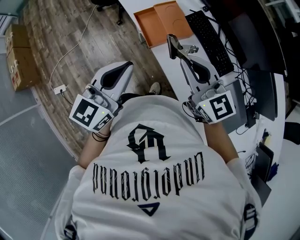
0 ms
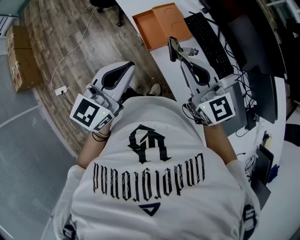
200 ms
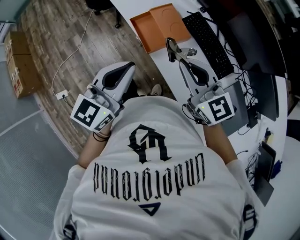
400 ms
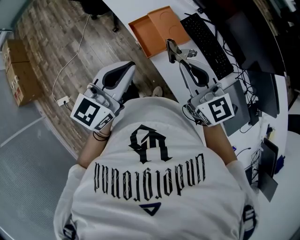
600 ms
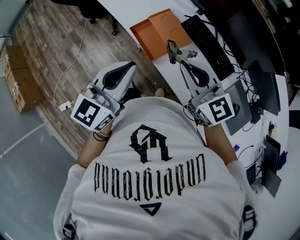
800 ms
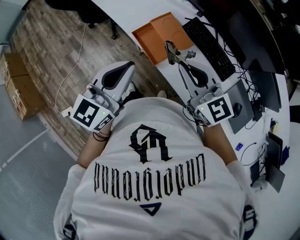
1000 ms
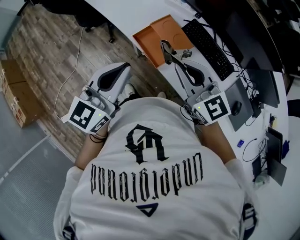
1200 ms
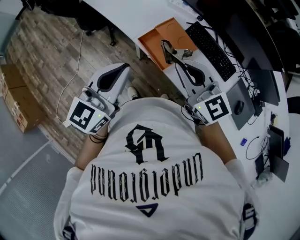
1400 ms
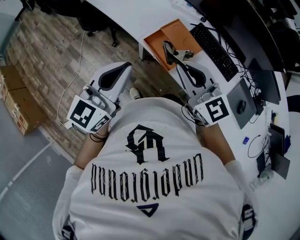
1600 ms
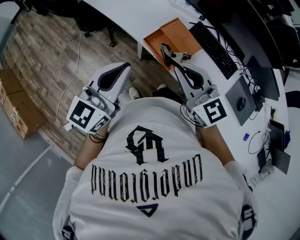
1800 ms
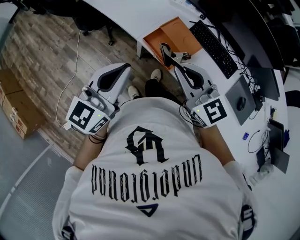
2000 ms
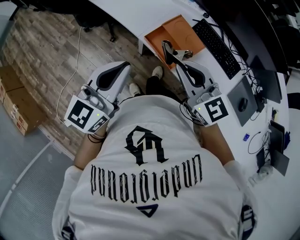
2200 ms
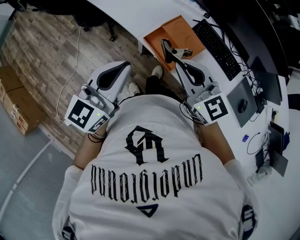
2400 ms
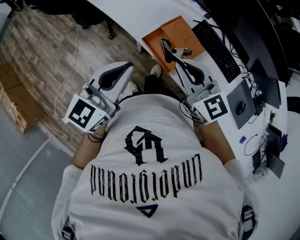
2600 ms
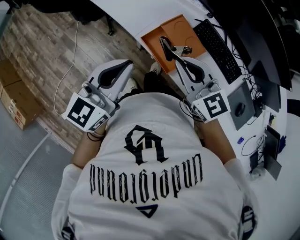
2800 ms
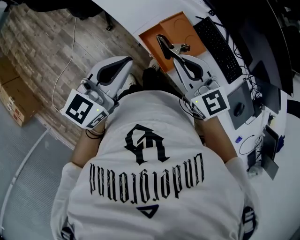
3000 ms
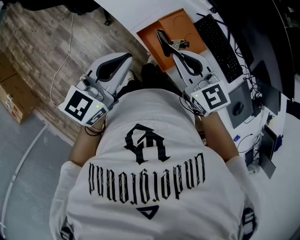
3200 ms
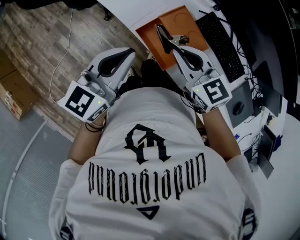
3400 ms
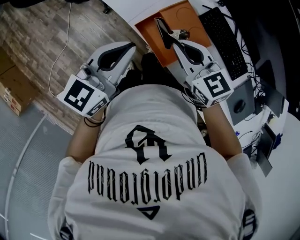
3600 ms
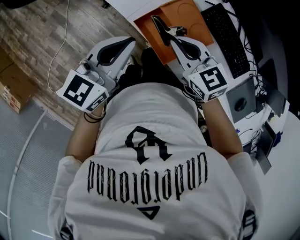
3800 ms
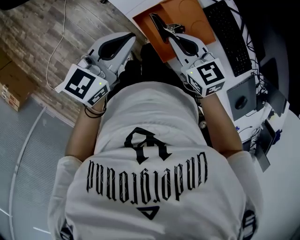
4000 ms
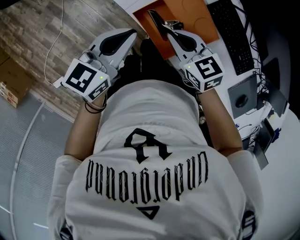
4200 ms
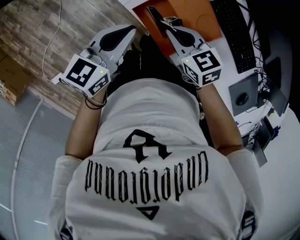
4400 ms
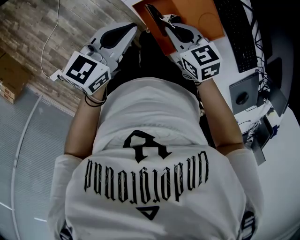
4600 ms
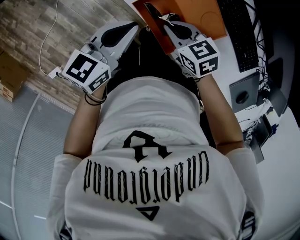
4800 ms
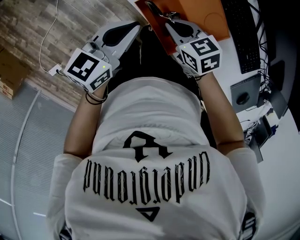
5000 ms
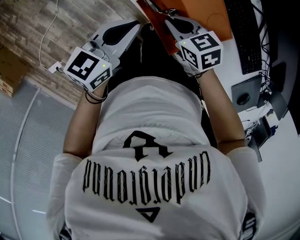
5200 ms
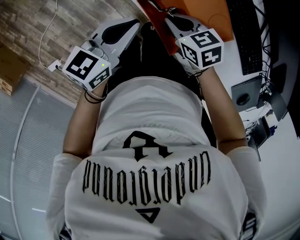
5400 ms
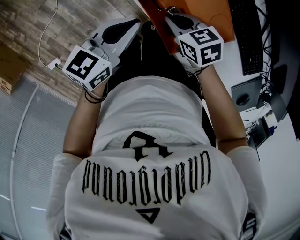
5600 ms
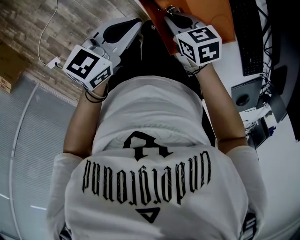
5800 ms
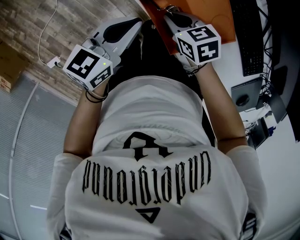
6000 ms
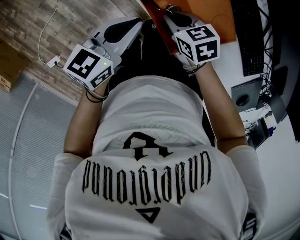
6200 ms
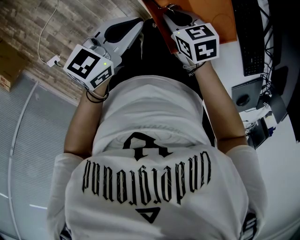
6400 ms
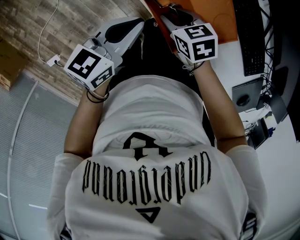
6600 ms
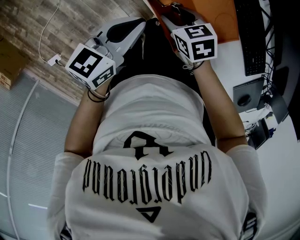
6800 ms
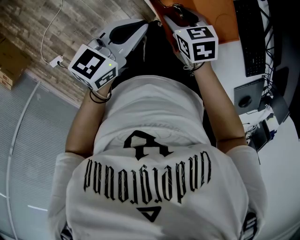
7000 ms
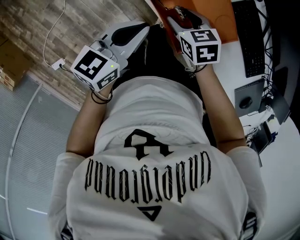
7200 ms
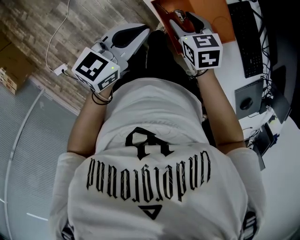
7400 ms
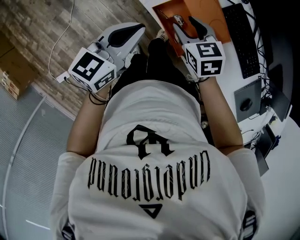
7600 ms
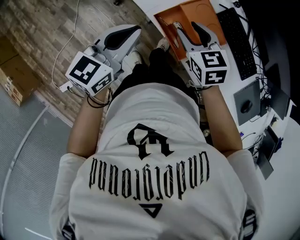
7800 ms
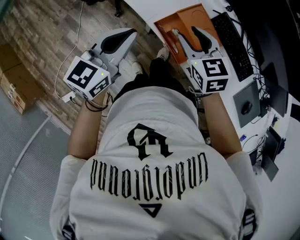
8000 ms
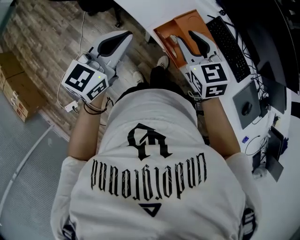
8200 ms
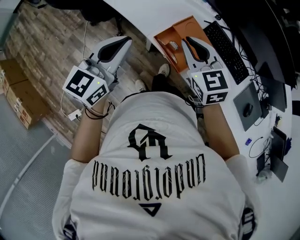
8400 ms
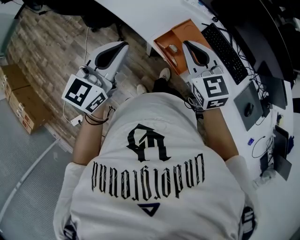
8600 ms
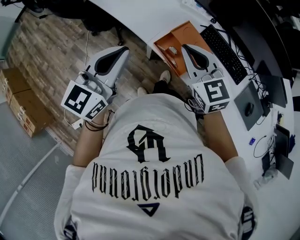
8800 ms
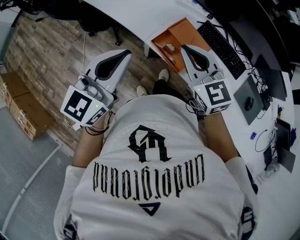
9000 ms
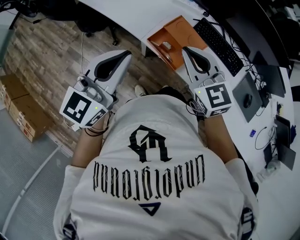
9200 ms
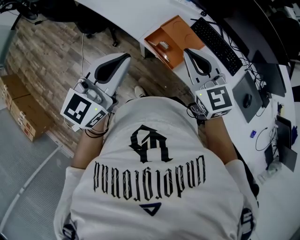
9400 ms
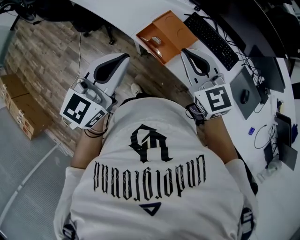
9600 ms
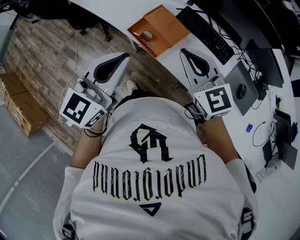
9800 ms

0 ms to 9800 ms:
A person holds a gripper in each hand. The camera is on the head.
0 ms to 1400 ms: Both grippers travel together to the left and forward, approximately 15 cm.
1400 ms to 2800 ms: The left gripper heads forward, covering roughly 5 cm; the right gripper moves forward and downward, some 10 cm.
2800 ms to 4200 ms: The right gripper goes about 20 cm downward, and changes its angle by approximately 30 degrees, while the left gripper is displaced downward and forward by roughly 20 cm.
4200 ms to 5600 ms: Both grippers travel together downward, about 10 cm.
5600 ms to 7000 ms: The right gripper opens.
7000 ms to 8400 ms: The left gripper travels upward and to the left by some 25 cm, and turns by approximately 30 degrees; the right gripper moves upward, approximately 30 cm, swivels roughly 40 degrees, and closes.
8400 ms to 9800 ms: Both grippers move to the right, backward and upward, approximately 20 cm.

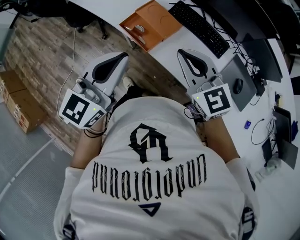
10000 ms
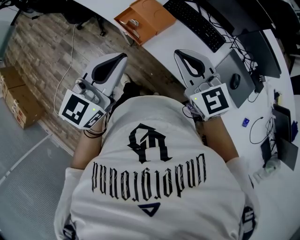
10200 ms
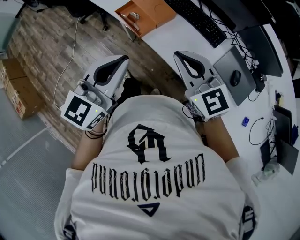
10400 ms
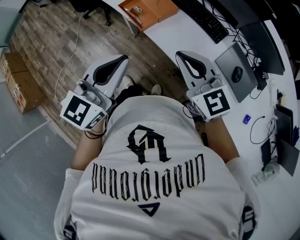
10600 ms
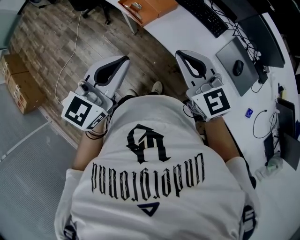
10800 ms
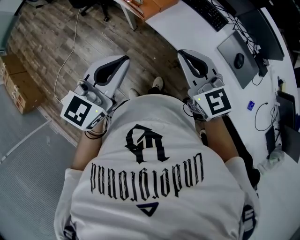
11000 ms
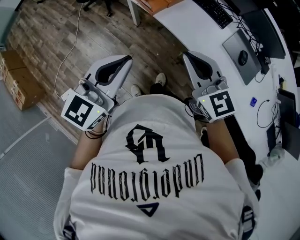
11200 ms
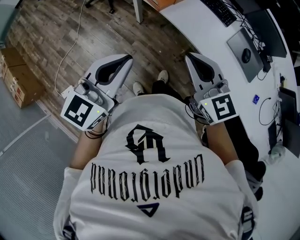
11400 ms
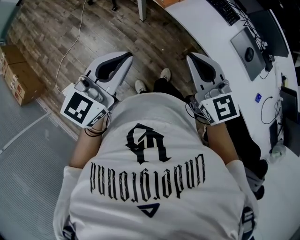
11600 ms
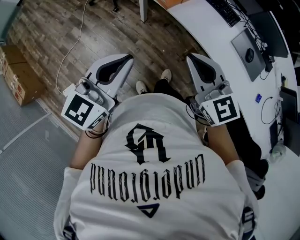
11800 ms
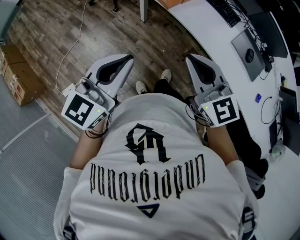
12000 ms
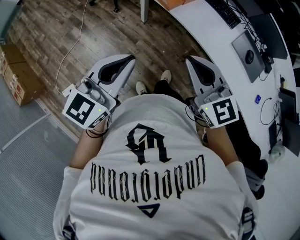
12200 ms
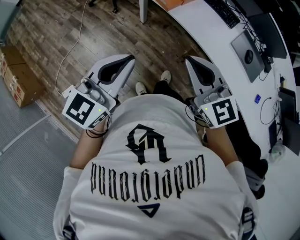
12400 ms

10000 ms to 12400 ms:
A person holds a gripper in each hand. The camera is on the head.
10000 ms to 11200 ms: Both grippers move backward, approximately 20 cm.
11200 ms to 12400 ms: Both grippers move to the left and backward, some 10 cm.

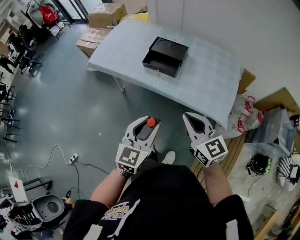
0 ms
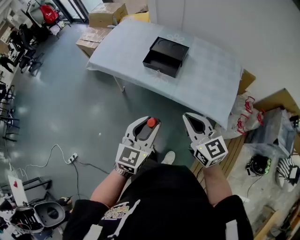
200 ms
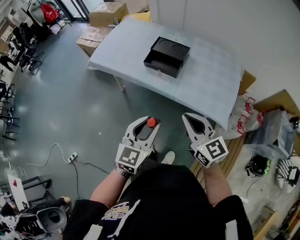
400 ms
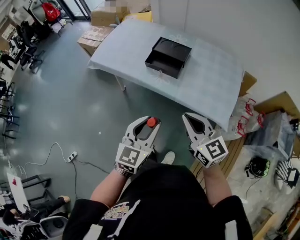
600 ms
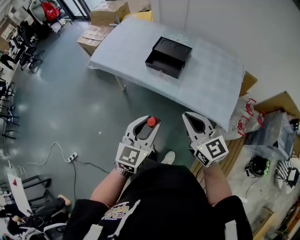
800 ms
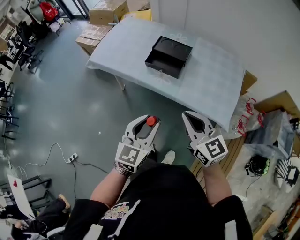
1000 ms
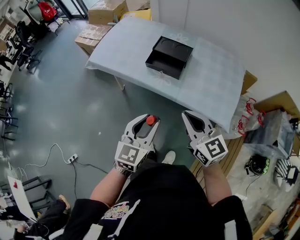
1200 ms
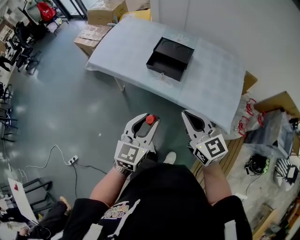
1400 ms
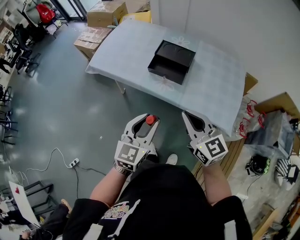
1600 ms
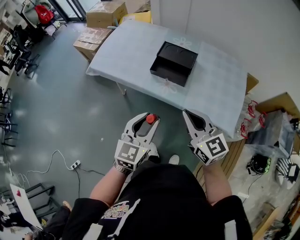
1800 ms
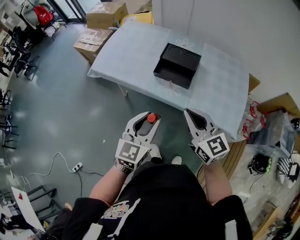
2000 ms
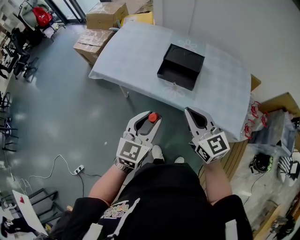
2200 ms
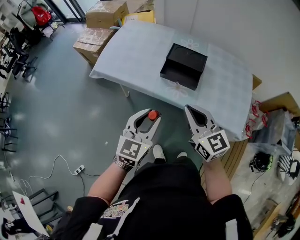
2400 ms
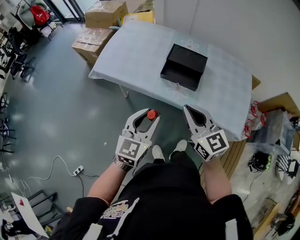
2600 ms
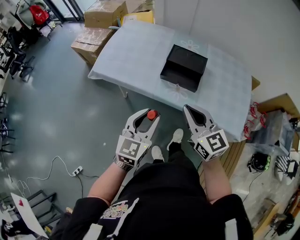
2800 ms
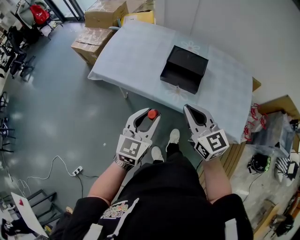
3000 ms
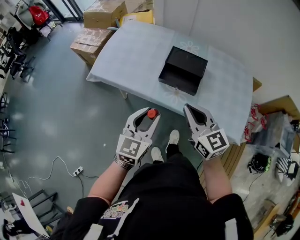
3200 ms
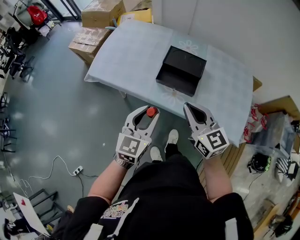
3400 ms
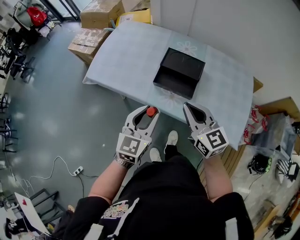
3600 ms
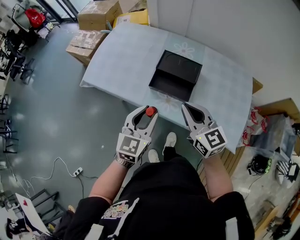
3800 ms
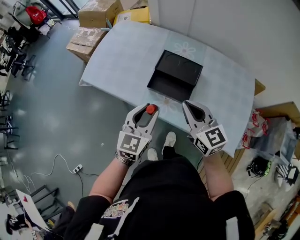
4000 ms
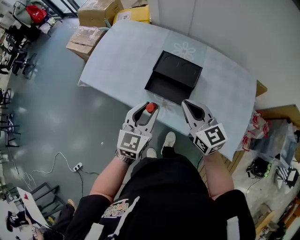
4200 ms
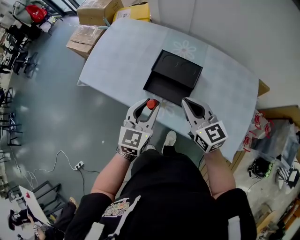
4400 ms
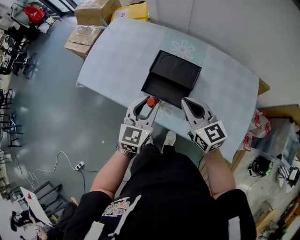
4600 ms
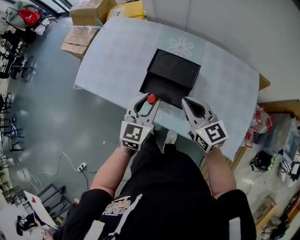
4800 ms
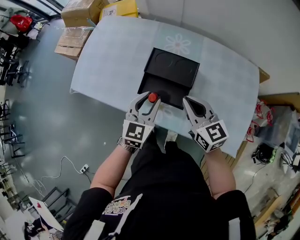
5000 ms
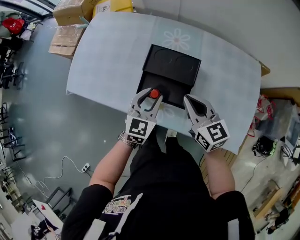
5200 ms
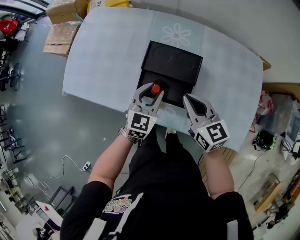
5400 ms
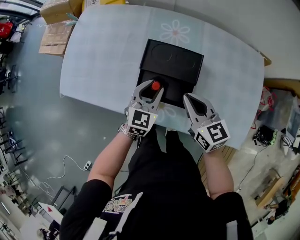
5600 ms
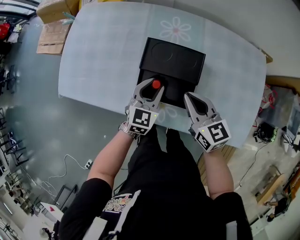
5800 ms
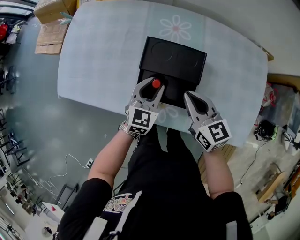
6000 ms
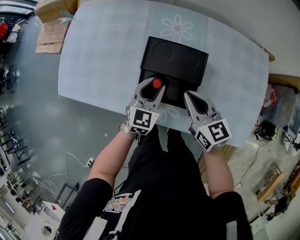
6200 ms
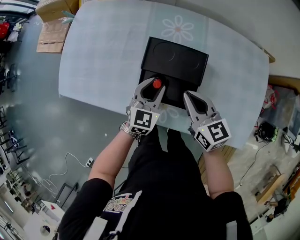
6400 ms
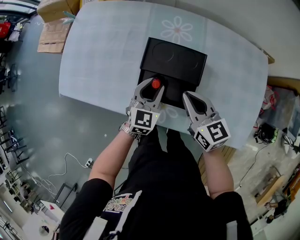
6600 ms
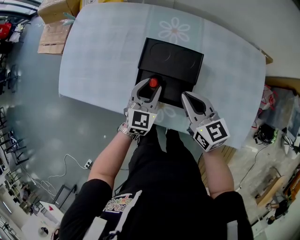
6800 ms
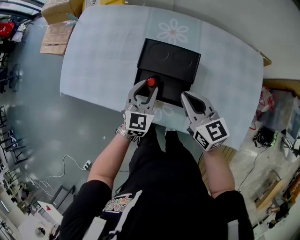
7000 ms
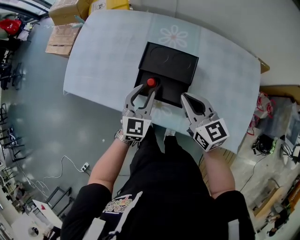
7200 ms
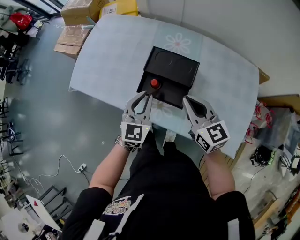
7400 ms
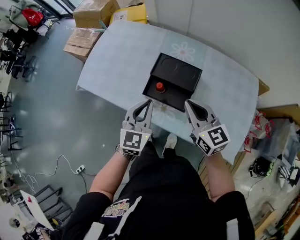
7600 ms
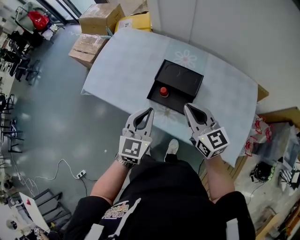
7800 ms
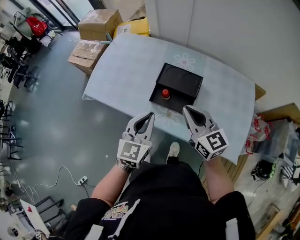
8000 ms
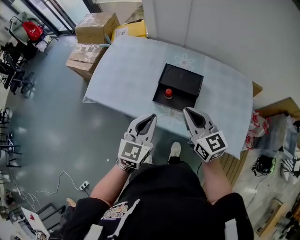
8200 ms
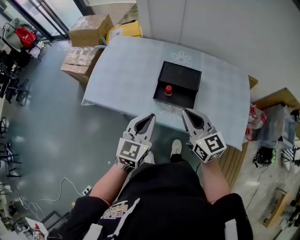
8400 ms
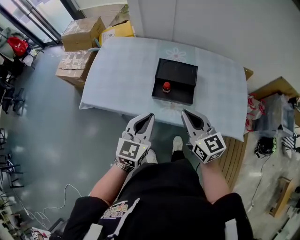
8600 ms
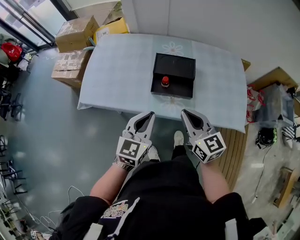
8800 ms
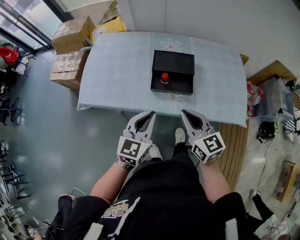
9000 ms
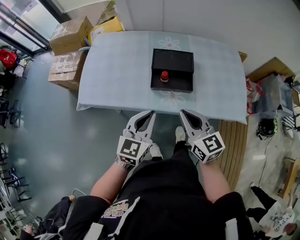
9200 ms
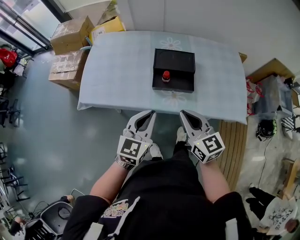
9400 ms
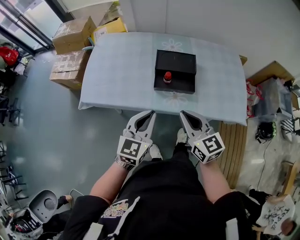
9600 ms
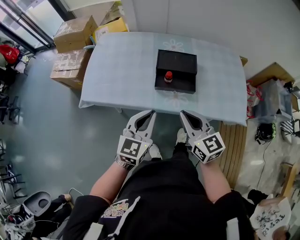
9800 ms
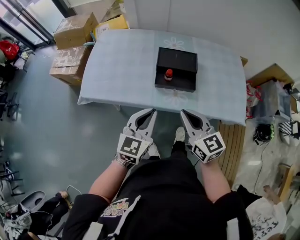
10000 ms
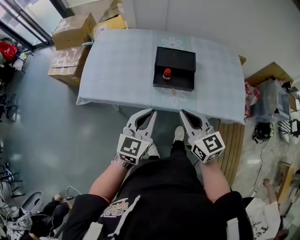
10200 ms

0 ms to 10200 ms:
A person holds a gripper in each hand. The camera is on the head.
0 ms to 1400 ms: The two grippers go approximately 5 cm forward.
1400 ms to 3000 ms: The two grippers go roughly 15 cm forward and to the left.
3000 ms to 4400 ms: Both grippers move forward and to the right, approximately 20 cm.
4400 ms to 5800 ms: The left gripper moves downward and forward, some 20 cm, while the right gripper goes roughly 15 cm downward and forward.
5800 ms to 7200 ms: The right gripper shifts by some 5 cm; the left gripper is displaced upward by roughly 5 cm.
7200 ms to 8800 ms: The right gripper heads backward, to the left and upward, covering some 20 cm. The left gripper travels backward, upward and to the left by approximately 25 cm, and closes up.
8800 ms to 10200 ms: The right gripper moves about 5 cm.

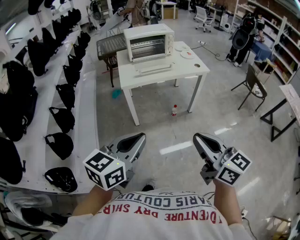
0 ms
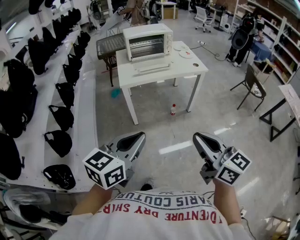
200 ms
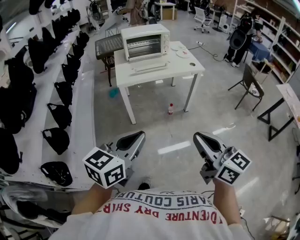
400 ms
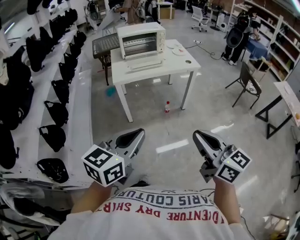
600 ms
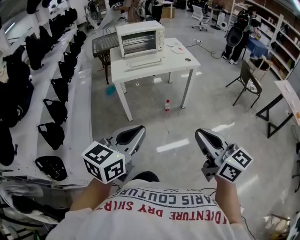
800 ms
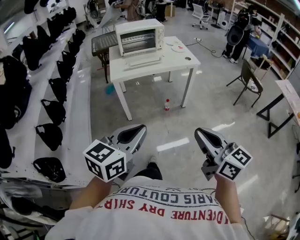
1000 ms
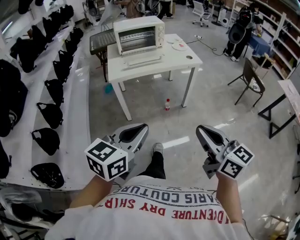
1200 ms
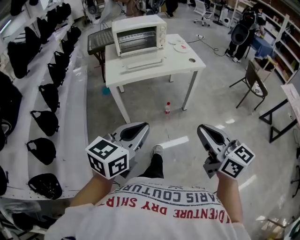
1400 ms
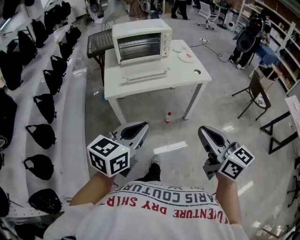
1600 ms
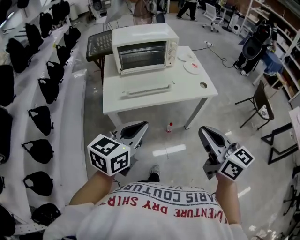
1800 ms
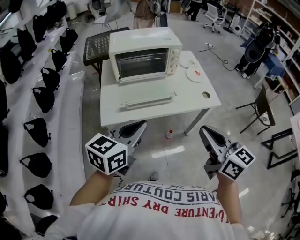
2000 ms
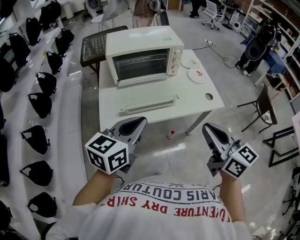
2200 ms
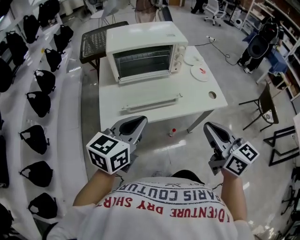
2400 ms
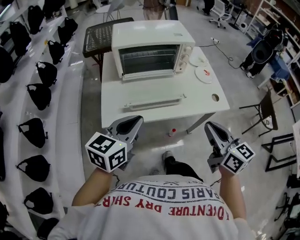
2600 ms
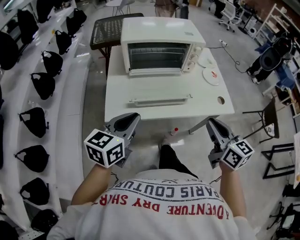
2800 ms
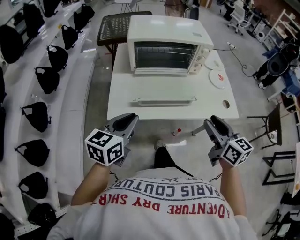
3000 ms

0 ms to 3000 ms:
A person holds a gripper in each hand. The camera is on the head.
0 ms to 1600 ms: Both grippers travel together forward, some 20 cm.
1600 ms to 3000 ms: The left gripper travels forward and to the left by about 30 cm. The right gripper is displaced forward by some 35 cm, and opens.
